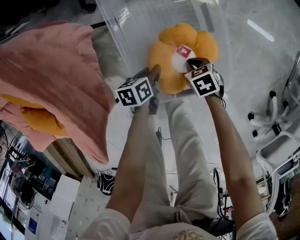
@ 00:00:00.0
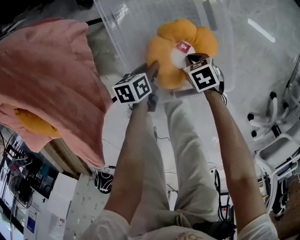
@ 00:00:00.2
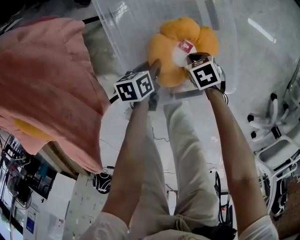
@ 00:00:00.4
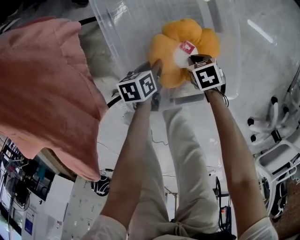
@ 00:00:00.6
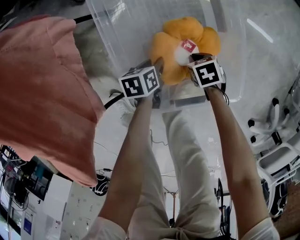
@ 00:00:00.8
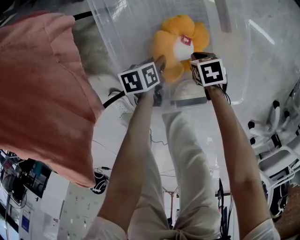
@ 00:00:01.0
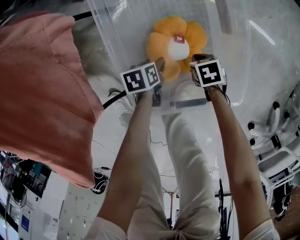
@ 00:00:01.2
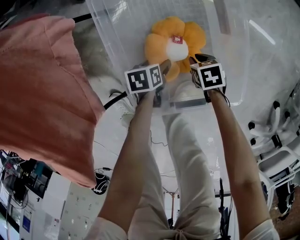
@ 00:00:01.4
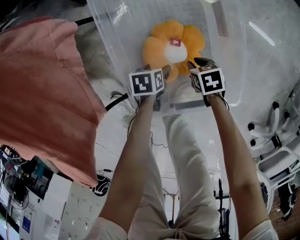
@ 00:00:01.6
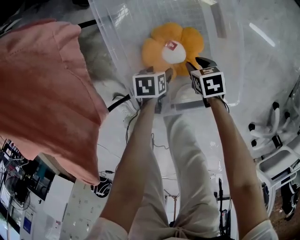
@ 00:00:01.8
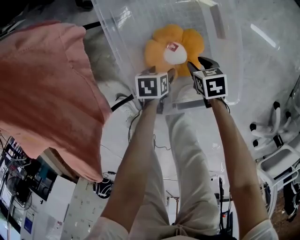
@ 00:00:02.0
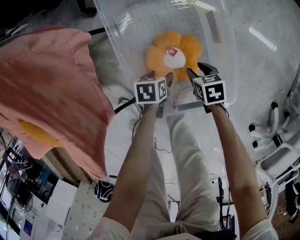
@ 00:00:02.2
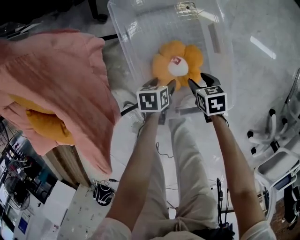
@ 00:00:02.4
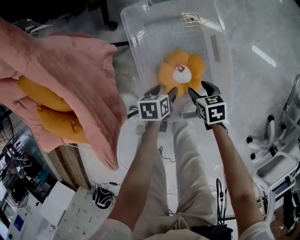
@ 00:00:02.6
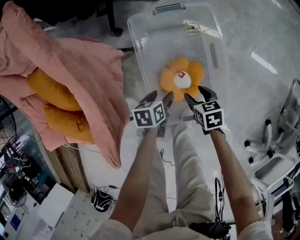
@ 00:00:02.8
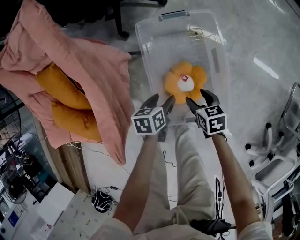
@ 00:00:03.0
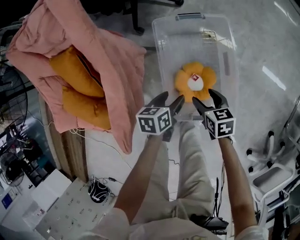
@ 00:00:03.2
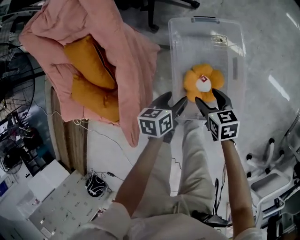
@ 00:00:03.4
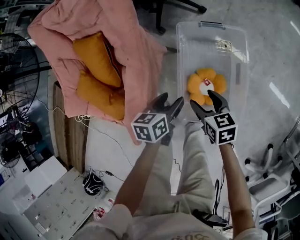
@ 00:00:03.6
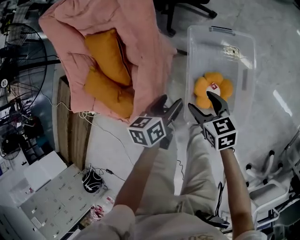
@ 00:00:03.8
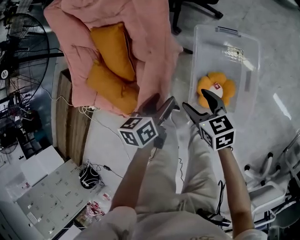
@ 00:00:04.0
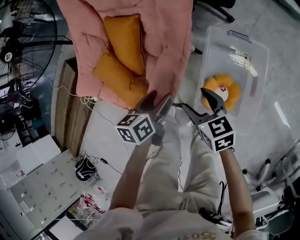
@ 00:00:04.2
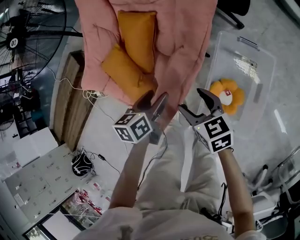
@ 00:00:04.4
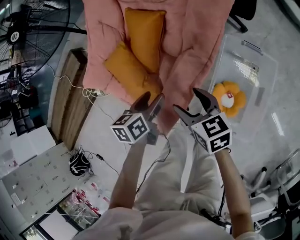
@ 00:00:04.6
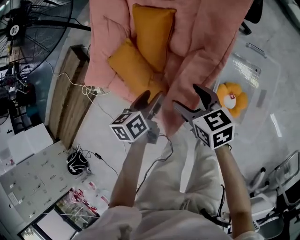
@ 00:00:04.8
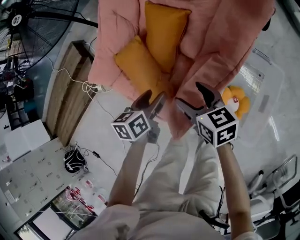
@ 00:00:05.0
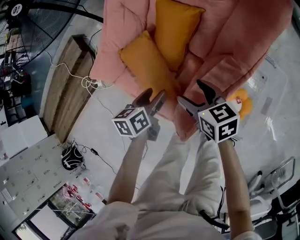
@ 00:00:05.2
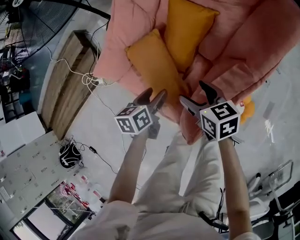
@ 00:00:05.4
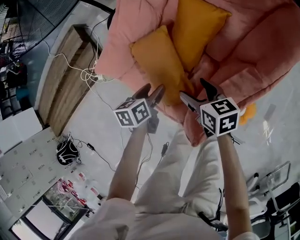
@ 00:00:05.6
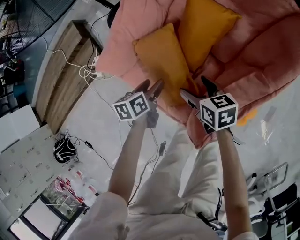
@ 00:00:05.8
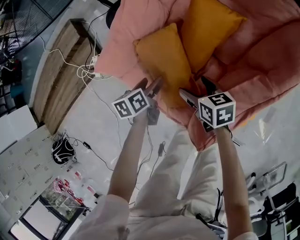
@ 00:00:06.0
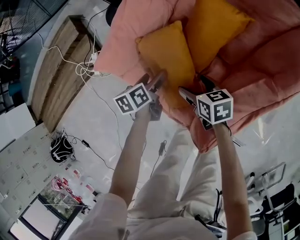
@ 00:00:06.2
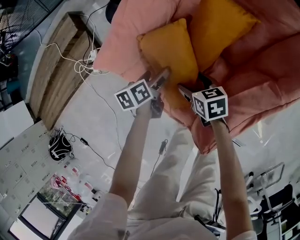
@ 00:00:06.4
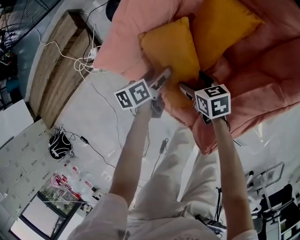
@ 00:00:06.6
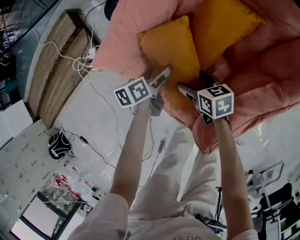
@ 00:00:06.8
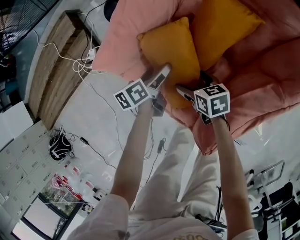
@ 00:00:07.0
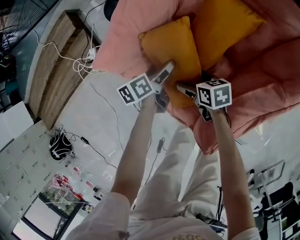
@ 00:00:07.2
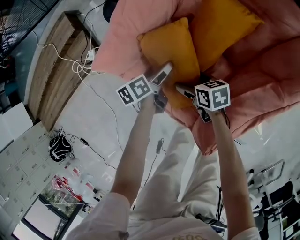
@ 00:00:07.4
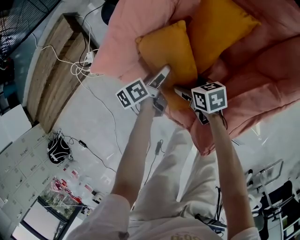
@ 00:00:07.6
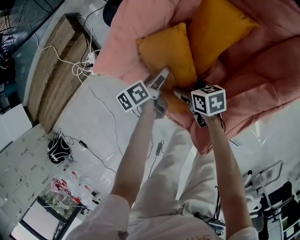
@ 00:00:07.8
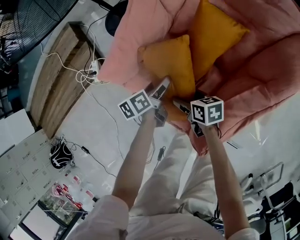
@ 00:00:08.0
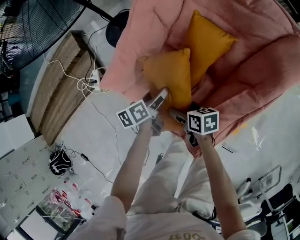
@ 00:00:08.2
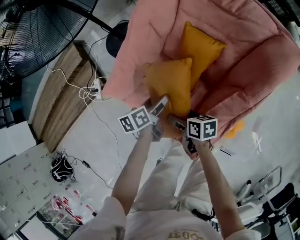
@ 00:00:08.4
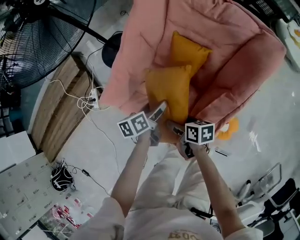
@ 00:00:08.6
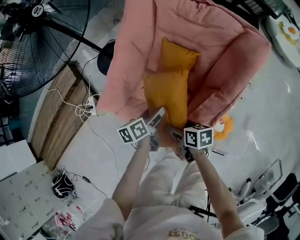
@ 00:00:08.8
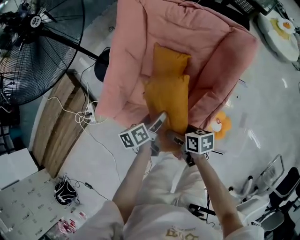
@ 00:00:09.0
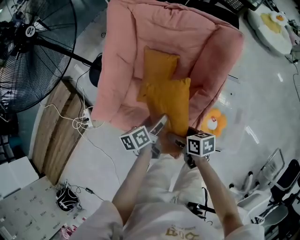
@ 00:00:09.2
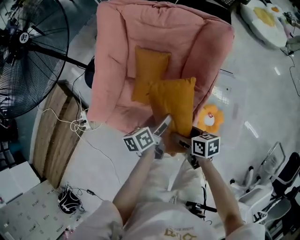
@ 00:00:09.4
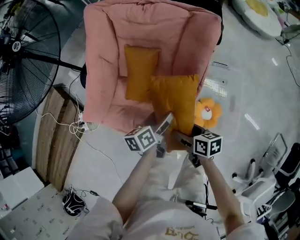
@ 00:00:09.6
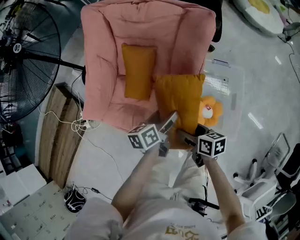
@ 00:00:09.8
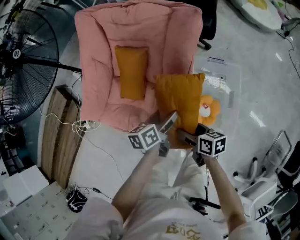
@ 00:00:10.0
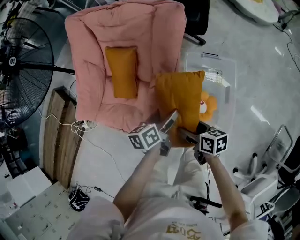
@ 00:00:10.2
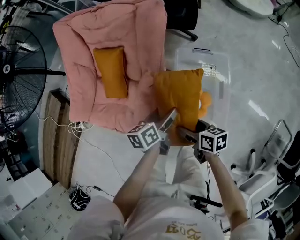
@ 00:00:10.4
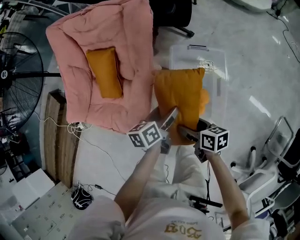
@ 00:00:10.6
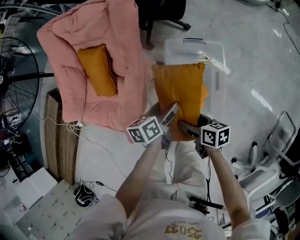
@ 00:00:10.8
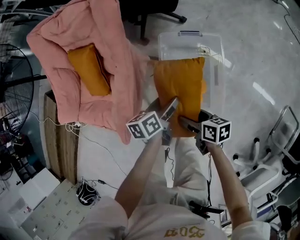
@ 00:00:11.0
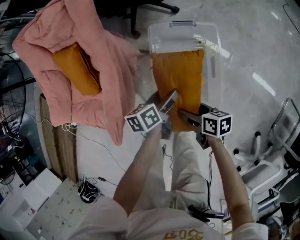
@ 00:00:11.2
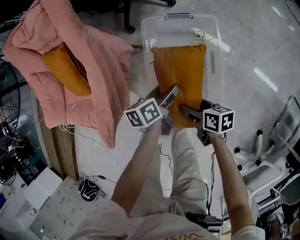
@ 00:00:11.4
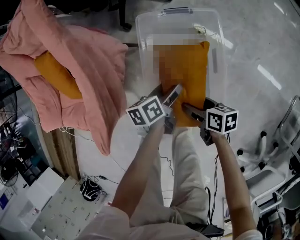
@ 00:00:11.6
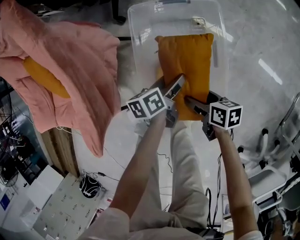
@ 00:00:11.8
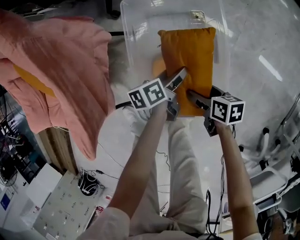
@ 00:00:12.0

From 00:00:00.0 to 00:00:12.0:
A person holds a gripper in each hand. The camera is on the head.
From 00:00:00.0 to 00:00:01.6: The two grippers go about 10 cm downward. The left gripper opens its fingers.
From 00:00:01.6 to 00:00:03.0: The two grippers go approximately 30 cm upward. The right gripper opens its fingers.
From 00:00:03.0 to 00:00:04.4: The right gripper changes place by roughly 35 cm, and swivels some 40 degrees; the left gripper moves roughly 35 cm, and swivels approximately 30 degrees.
From 00:00:04.4 to 00:00:06.0: Both grippers travel together to the left, forward and downward, about 30 cm. The left gripper swivels roughly 20 degrees.
From 00:00:06.0 to 00:00:07.6: The left gripper moves some 5 cm, and changes its angle by about 20 degrees; the right gripper moves downward, about 10 cm.
From 00:00:07.6 to 00:00:09.0: The left gripper is displaced upward and to the right by some 25 cm. The right gripper is displaced upward, backward and to the right by approximately 25 cm, and swivels roughly 20 degrees.
From 00:00:09.0 to 00:00:10.4: The right gripper moves to the right and backward, some 30 cm, while the left gripper heads to the right, covering some 30 cm.
From 00:00:10.4 to 00:00:12.0: Both grippers travel together downward and to the right, about 40 cm.

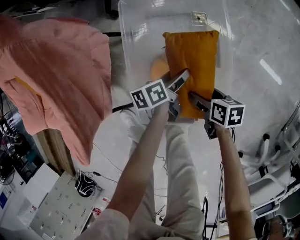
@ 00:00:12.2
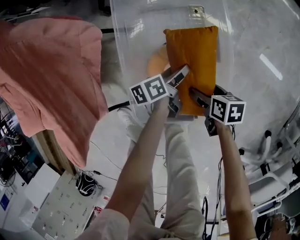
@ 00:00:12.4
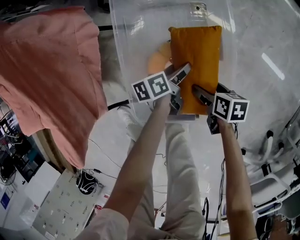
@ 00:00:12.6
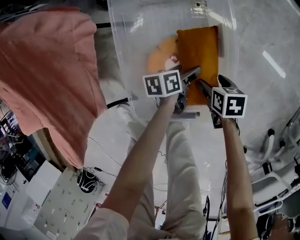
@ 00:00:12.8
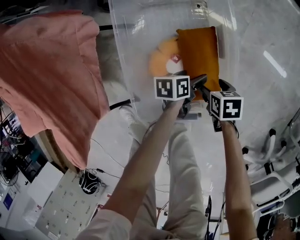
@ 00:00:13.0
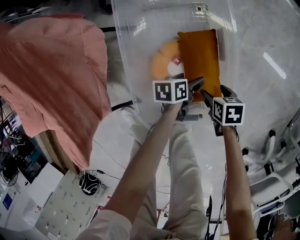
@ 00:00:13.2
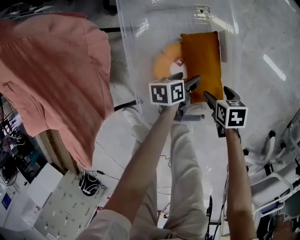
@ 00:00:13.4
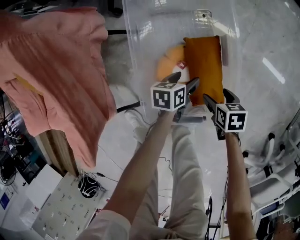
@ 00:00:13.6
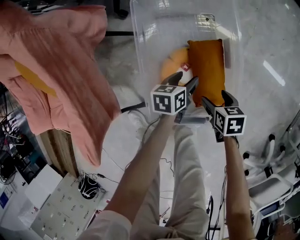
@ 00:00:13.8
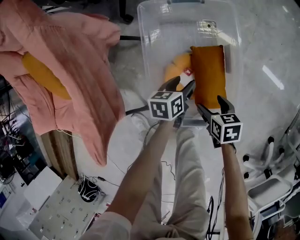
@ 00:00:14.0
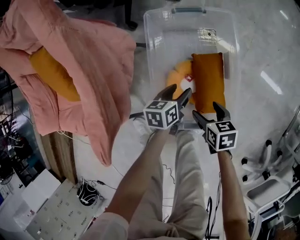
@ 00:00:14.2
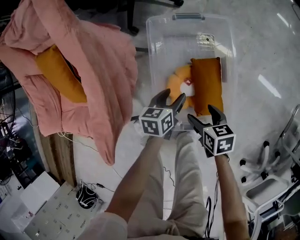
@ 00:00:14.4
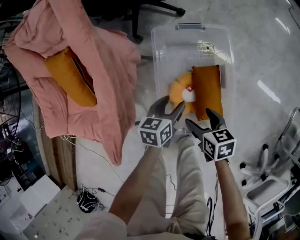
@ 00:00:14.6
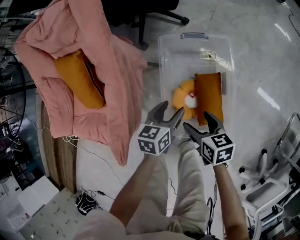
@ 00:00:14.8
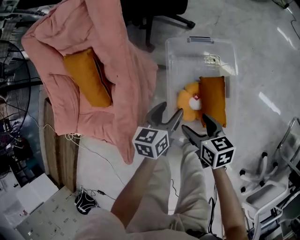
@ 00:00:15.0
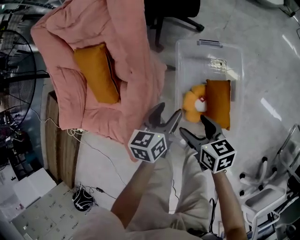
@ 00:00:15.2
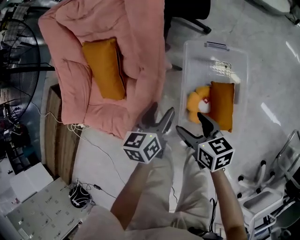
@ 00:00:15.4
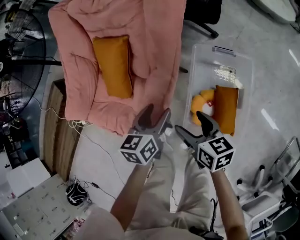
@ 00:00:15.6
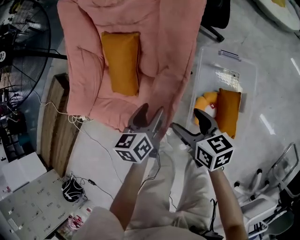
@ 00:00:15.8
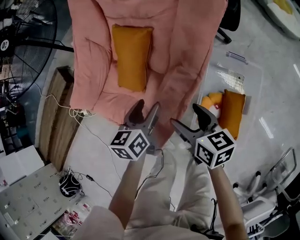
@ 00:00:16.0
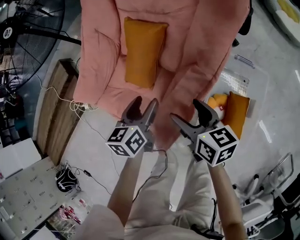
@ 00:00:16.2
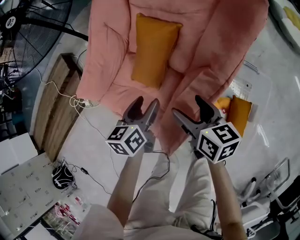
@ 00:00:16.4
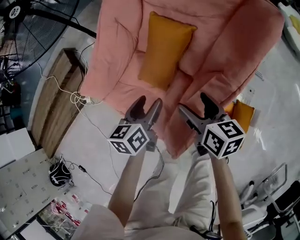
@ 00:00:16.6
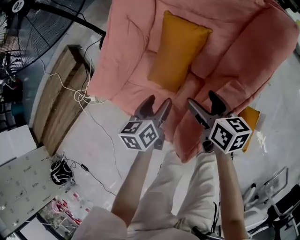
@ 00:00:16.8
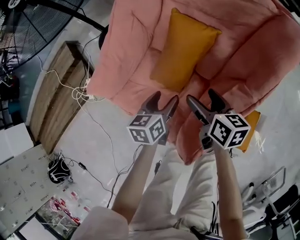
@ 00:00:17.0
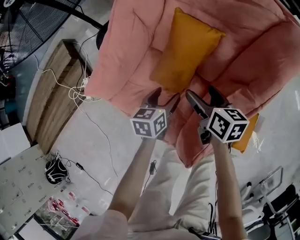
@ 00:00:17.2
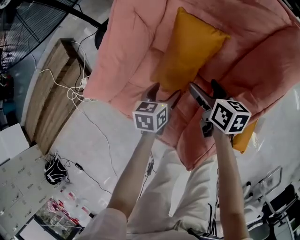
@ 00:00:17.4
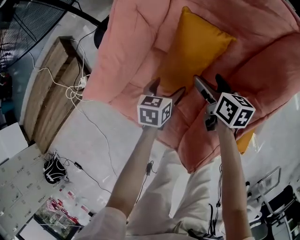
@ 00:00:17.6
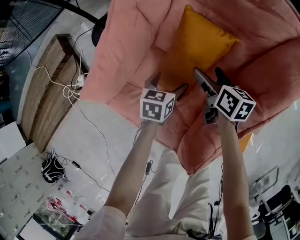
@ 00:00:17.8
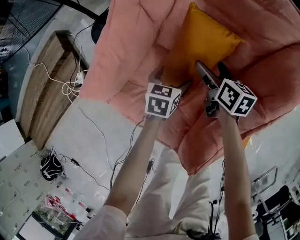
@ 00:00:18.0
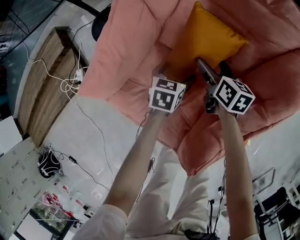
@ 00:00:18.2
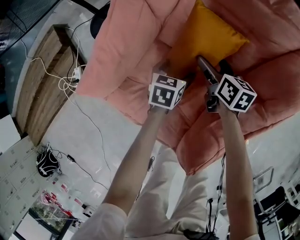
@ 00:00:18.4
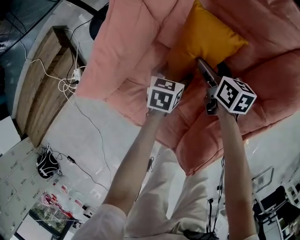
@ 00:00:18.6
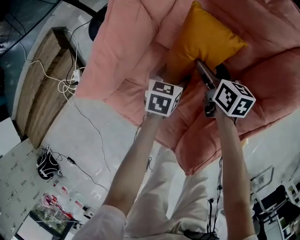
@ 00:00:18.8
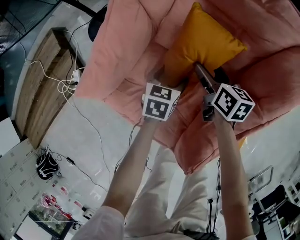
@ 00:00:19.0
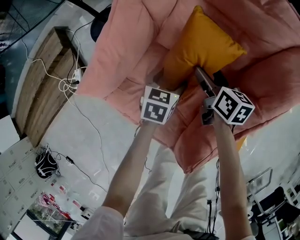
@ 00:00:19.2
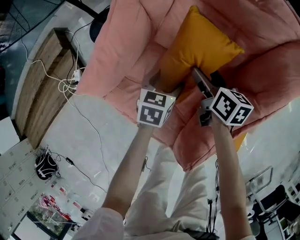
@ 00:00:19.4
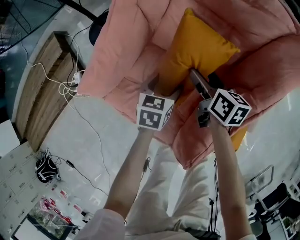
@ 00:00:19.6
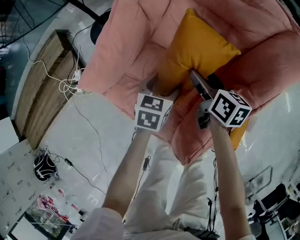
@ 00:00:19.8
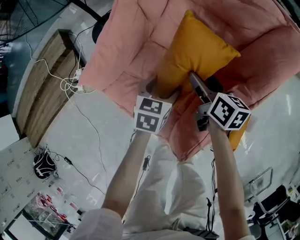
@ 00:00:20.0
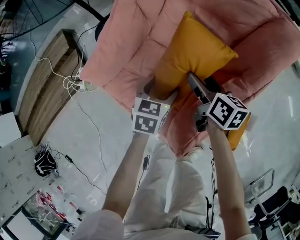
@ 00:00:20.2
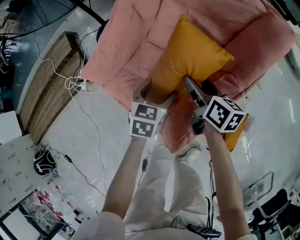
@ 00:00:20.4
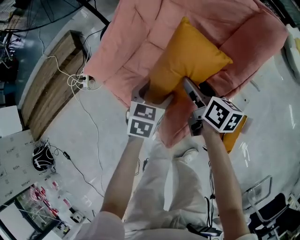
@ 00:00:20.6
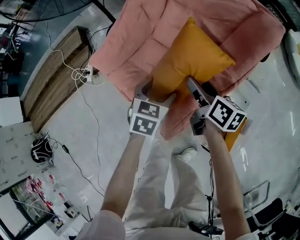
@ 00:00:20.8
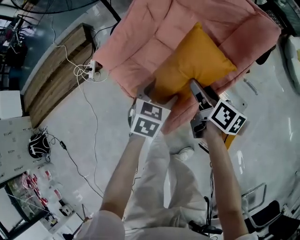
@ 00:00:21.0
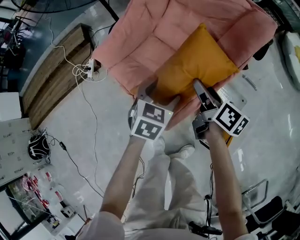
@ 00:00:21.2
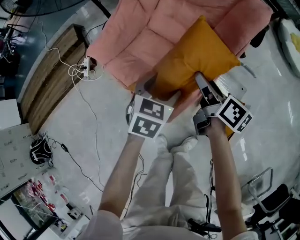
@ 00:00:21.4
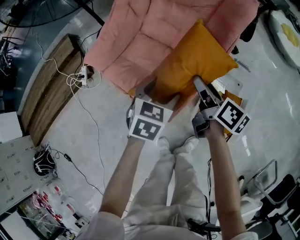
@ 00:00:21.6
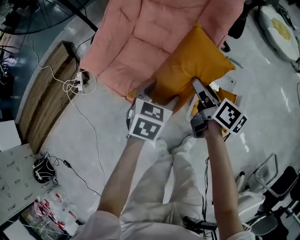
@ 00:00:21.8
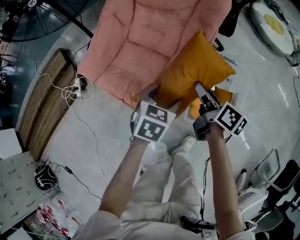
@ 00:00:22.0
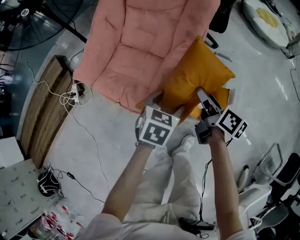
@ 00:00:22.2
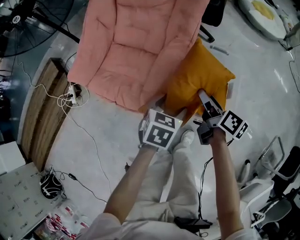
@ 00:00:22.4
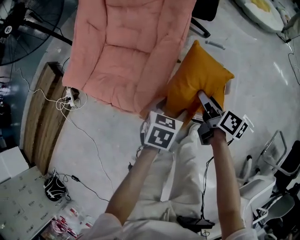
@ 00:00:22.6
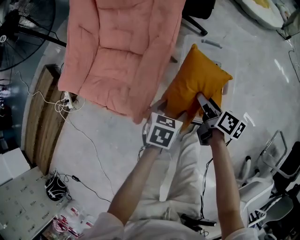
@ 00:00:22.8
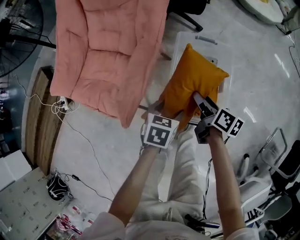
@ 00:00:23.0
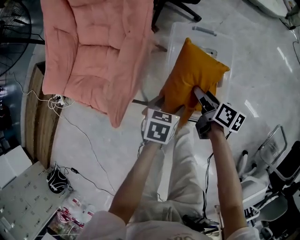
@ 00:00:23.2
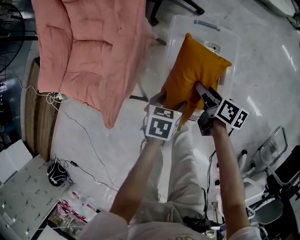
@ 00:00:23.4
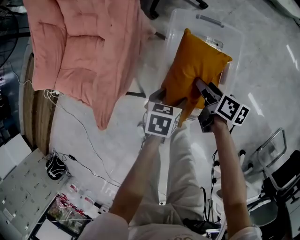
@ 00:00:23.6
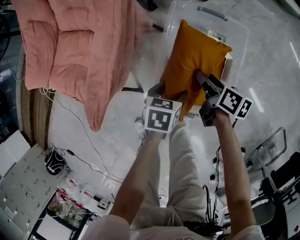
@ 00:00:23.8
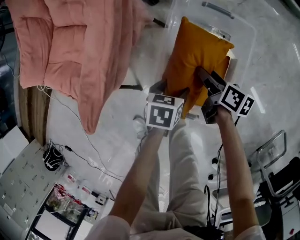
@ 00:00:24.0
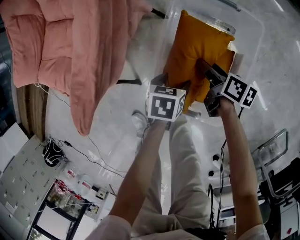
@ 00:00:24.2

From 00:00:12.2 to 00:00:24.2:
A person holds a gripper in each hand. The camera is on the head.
From 00:00:12.2 to 00:00:13.8: The left gripper moves about 10 cm downward and comes back, and turns by approximately 30 degrees.
From 00:00:13.8 to 00:00:15.2: The grippers both shift upward and to the left by roughly 35 cm. The right gripper changes its angle by roughly 30 degrees; the left gripper turns by about 20 degrees.
From 00:00:15.2 to 00:00:16.6: The right gripper moves to the left and forward, some 30 cm. The left gripper travels to the left by about 35 cm, and changes its angle by about 30 degrees.
From 00:00:16.6 to 00:00:18.2: The right gripper shifts roughly 25 cm forward and downward; the left gripper moves downward and forward, approximately 20 cm, rotates some 20 degrees, and opens up.
From 00:00:18.2 to 00:00:19.8: The right gripper heads backward and upward, covering some 10 cm; the left gripper moves upward and backward, approximately 10 cm.
From 00:00:19.8 to 00:00:21.2: The left gripper moves backward and upward, roughly 20 cm, while the right gripper travels backward, upward and to the right by roughly 20 cm.
From 00:00:21.2 to 00:00:22.6: The left gripper changes place by approximately 20 cm, and swivels some 20 degrees; the right gripper ends up roughly 25 cm from where it was, and turns by approximately 20 degrees.
From 00:00:22.6 to 00:00:24.2: The right gripper heads downward and forward, covering approximately 35 cm, and swivels approximately 20 degrees. The left gripper moves downward and to the right, roughly 35 cm, and swivels roughly 30 degrees.
